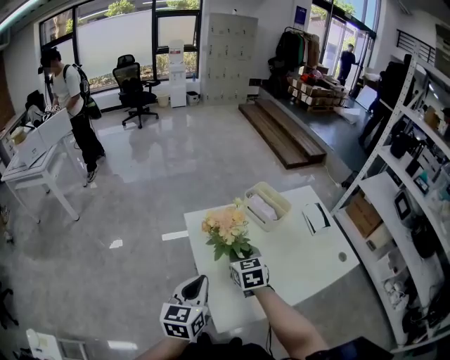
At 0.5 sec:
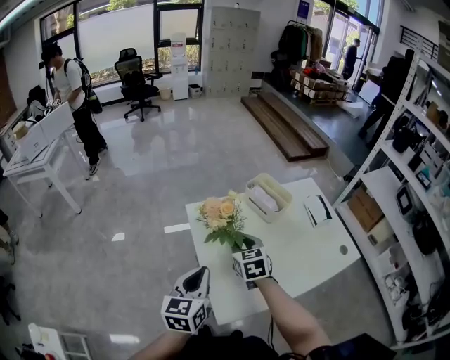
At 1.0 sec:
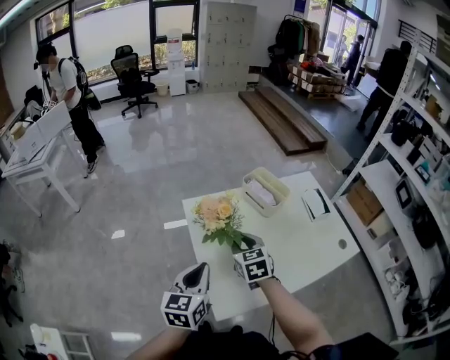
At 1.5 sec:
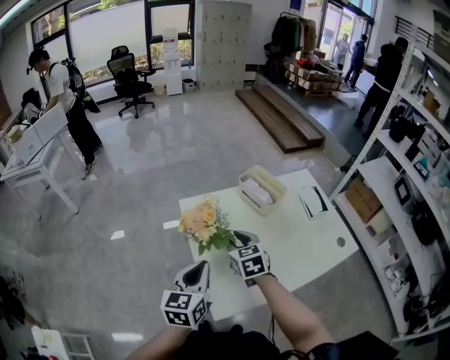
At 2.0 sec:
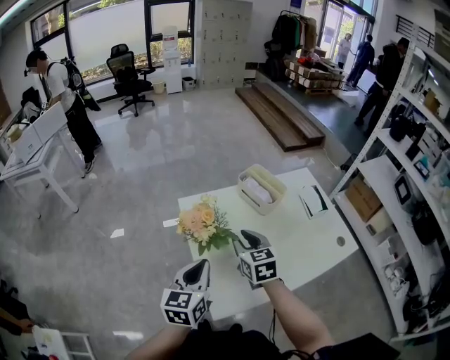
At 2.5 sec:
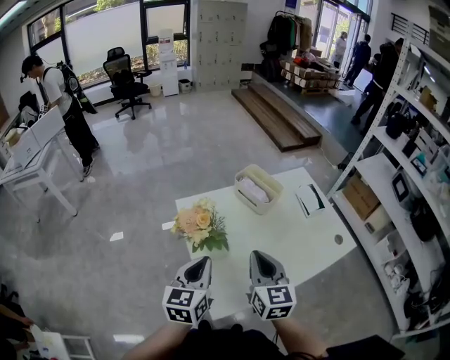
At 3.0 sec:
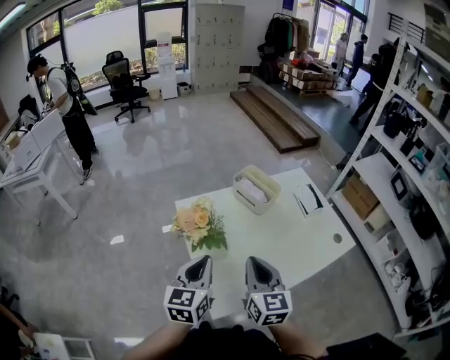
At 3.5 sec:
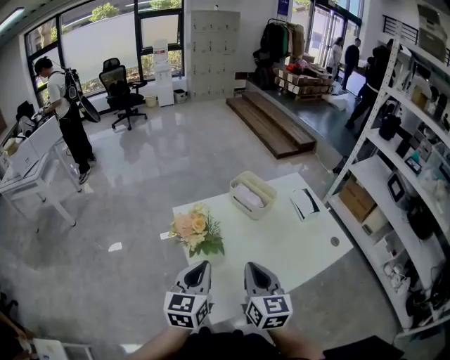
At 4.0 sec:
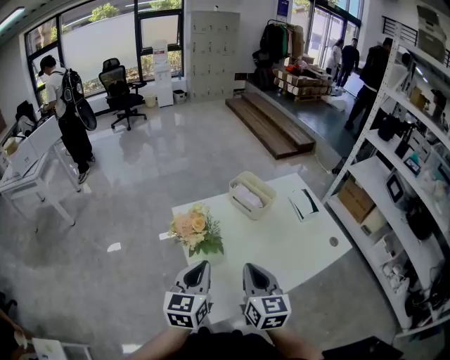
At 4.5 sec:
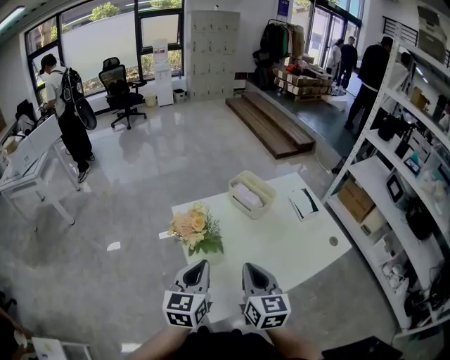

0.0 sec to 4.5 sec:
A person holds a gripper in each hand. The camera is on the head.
0.0 sec to 2.0 sec: The right gripper changes place by some 5 cm.
2.0 sec to 4.5 sec: The right gripper is displaced backward by about 10 cm, and closes.

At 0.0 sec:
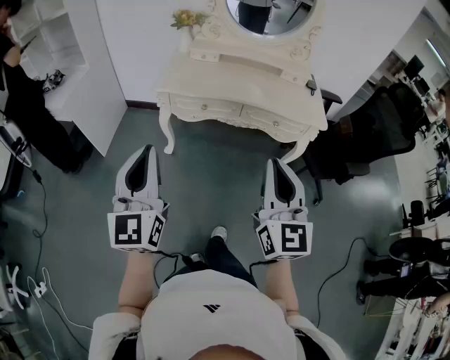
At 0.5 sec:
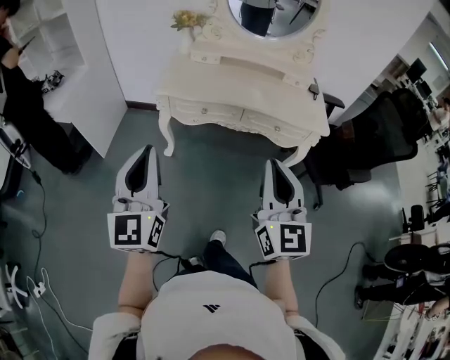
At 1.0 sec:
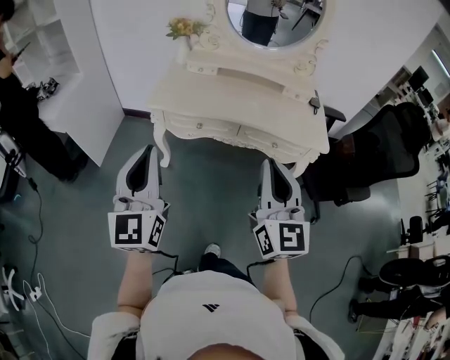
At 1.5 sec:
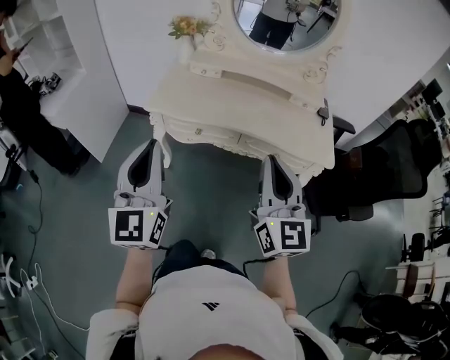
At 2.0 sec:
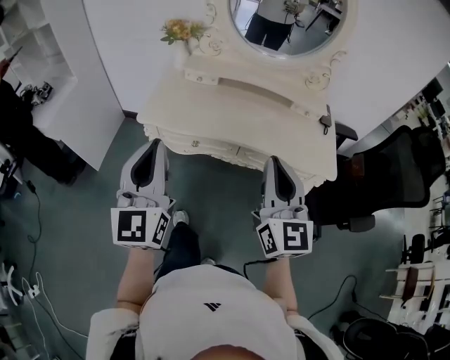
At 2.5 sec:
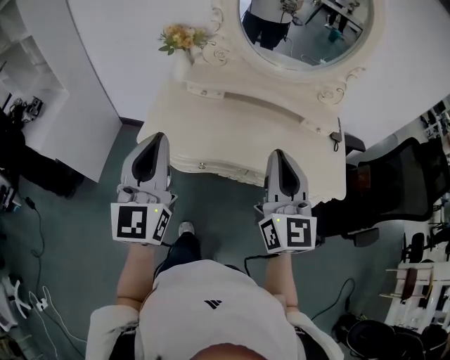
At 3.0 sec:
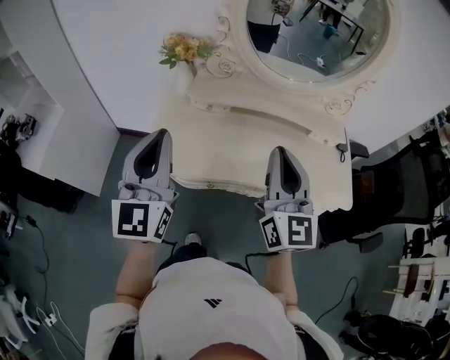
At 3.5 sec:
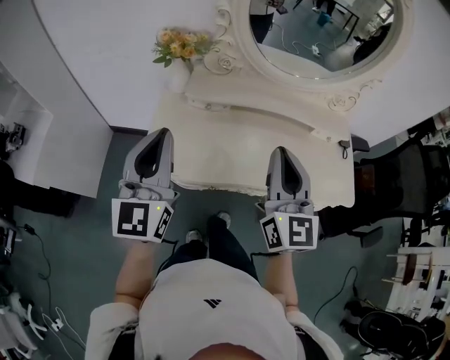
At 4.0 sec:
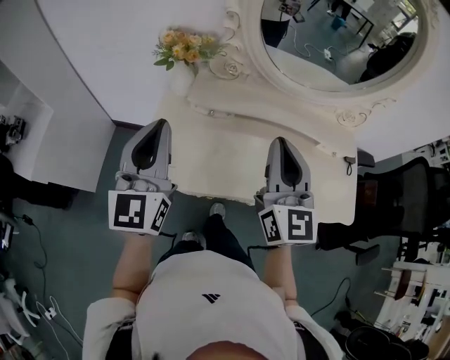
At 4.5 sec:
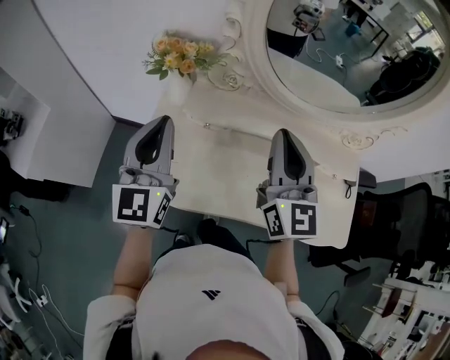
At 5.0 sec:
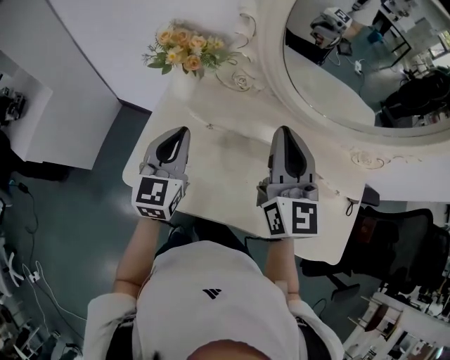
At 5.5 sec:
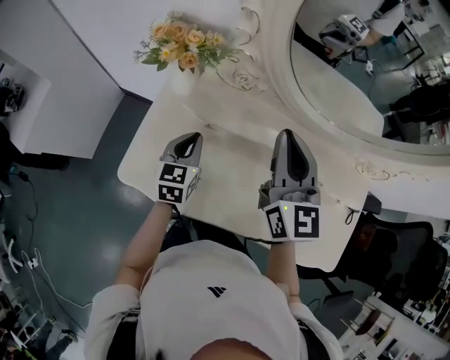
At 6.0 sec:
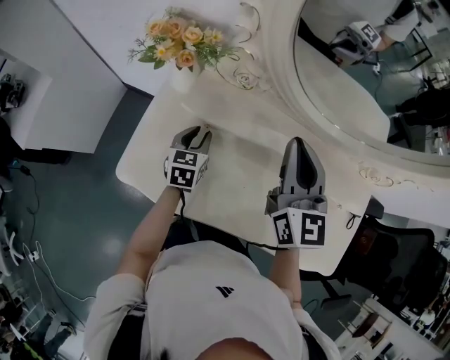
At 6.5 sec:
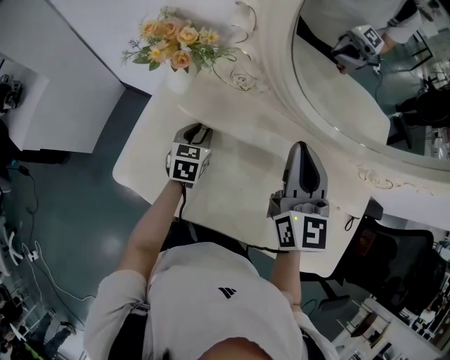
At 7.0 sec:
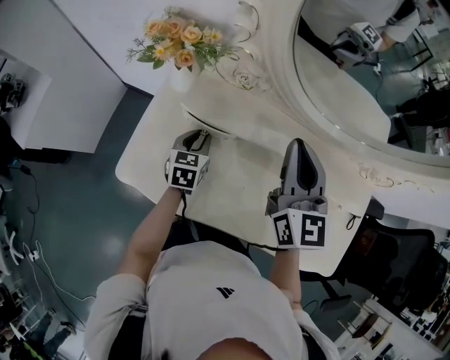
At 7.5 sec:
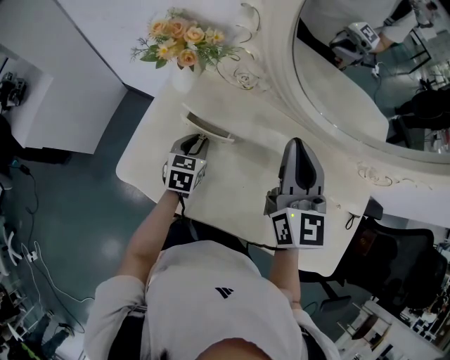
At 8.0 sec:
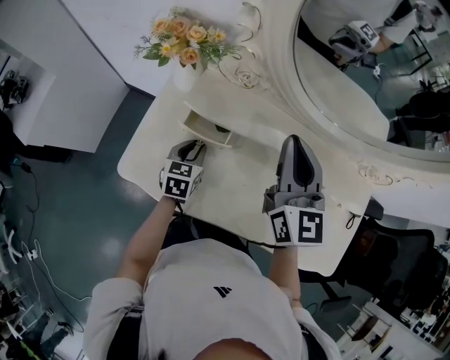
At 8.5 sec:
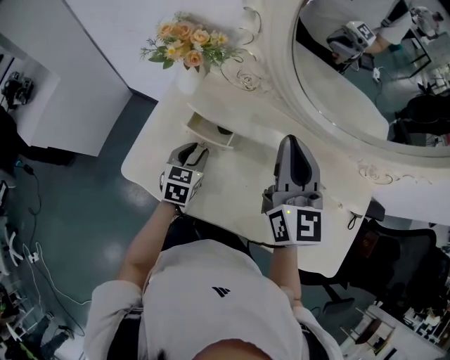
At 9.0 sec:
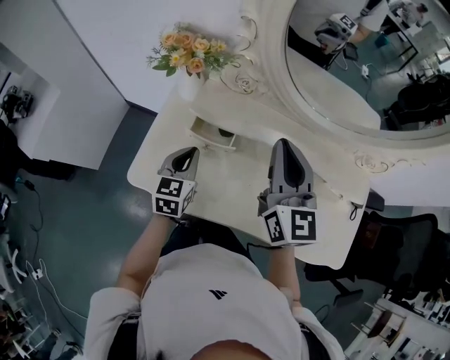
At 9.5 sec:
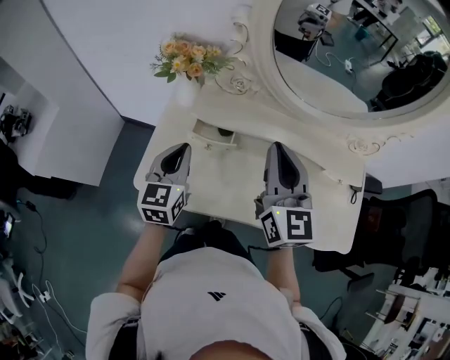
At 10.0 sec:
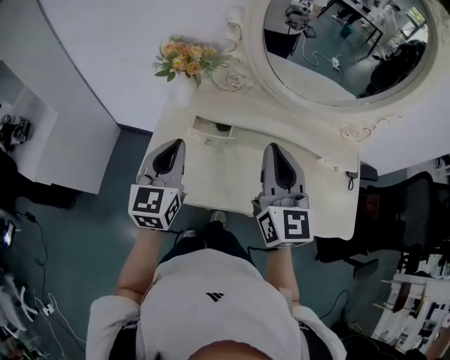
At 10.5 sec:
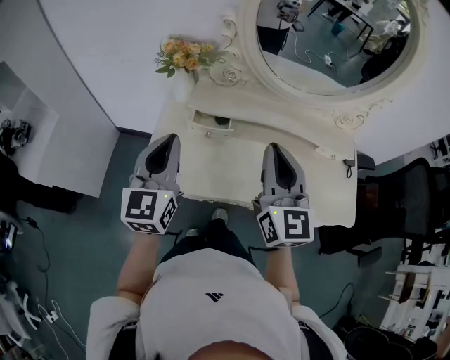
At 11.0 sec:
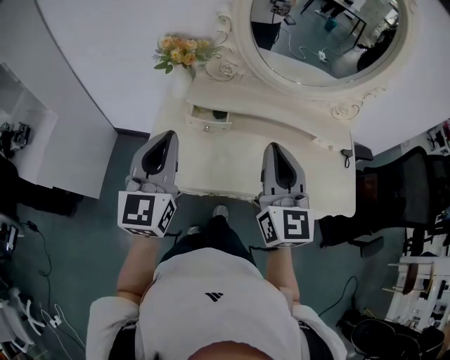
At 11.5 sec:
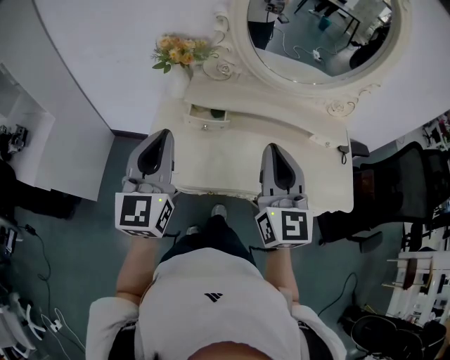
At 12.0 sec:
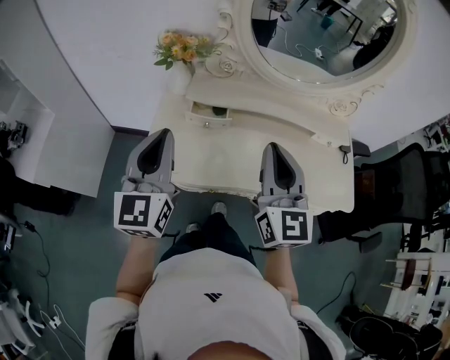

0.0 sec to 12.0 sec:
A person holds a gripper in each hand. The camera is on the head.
0.0 sec to 2.0 sec: Both grippers move forward, approximately 25 cm.
2.0 sec to 4.0 sec: Both grippers move forward, roughly 35 cm.
4.0 sec to 6.0 sec: The right gripper travels forward by approximately 20 cm. The left gripper travels downward and forward by some 35 cm, points its fingers about 40 degrees further downward, and opens its fingers.
6.0 sec to 8.0 sec: The left gripper changes place by roughly 5 cm.
8.0 sec to 10.0 sec: The right gripper moves backward and to the left, roughly 15 cm. Meanwhile the left gripper heads upward and backward, covering roughly 25 cm, tilts its fingers roughly 30 degrees upward, and closes up.
10.0 sec to 12.0 sec: The right gripper heads backward, covering roughly 10 cm, while the left gripper shifts some 10 cm backward and upward.

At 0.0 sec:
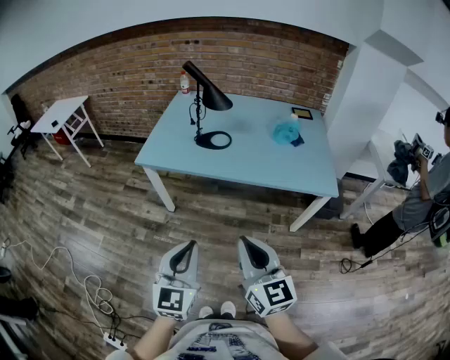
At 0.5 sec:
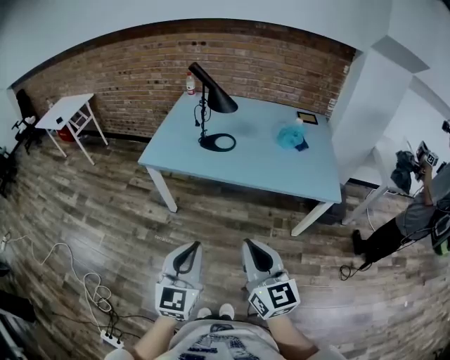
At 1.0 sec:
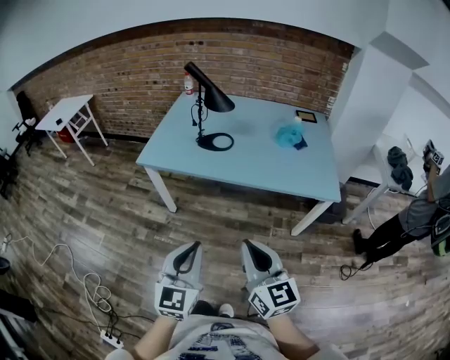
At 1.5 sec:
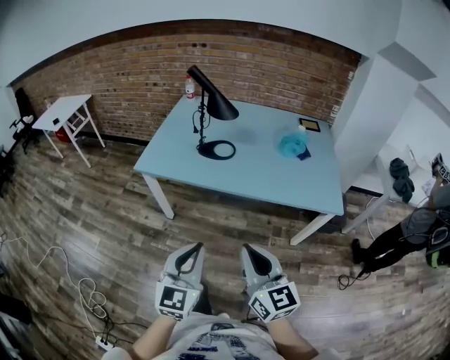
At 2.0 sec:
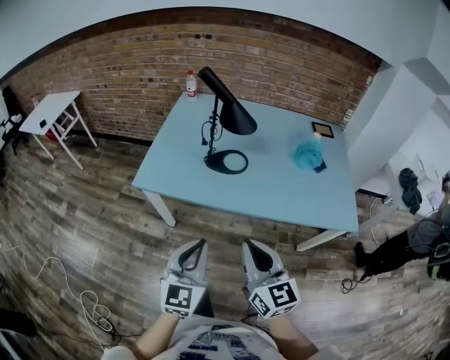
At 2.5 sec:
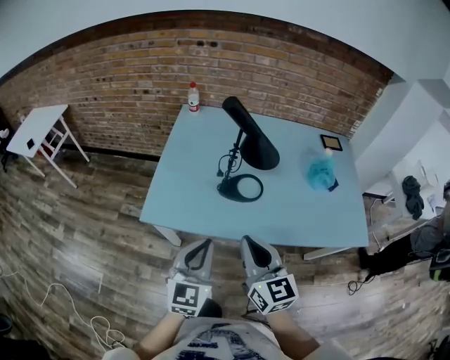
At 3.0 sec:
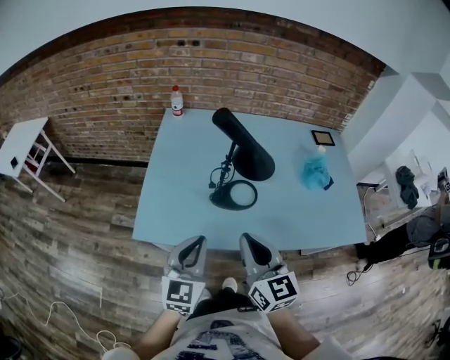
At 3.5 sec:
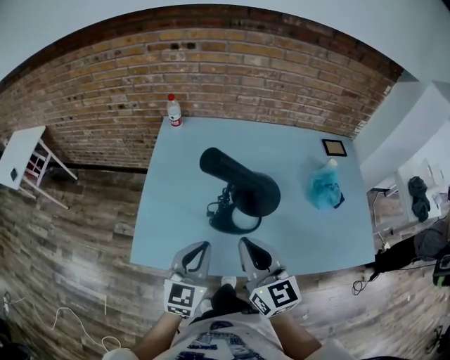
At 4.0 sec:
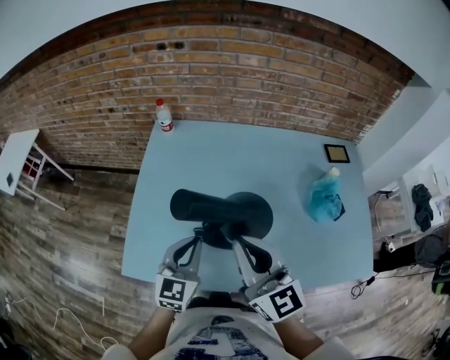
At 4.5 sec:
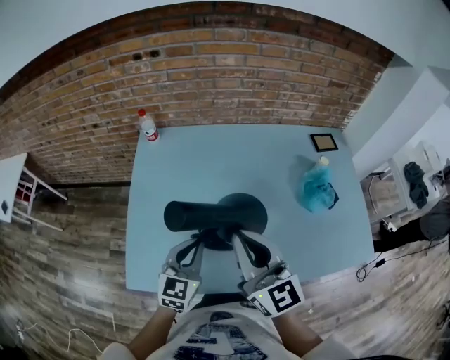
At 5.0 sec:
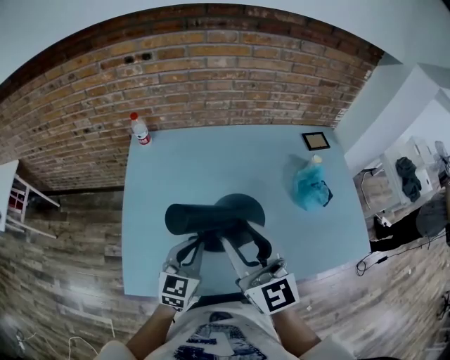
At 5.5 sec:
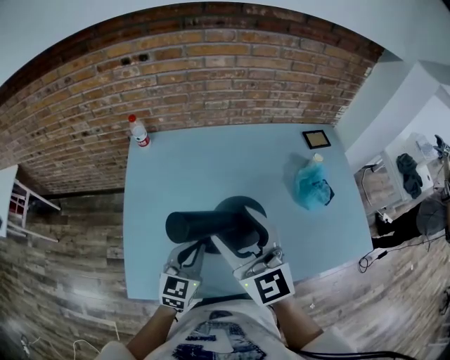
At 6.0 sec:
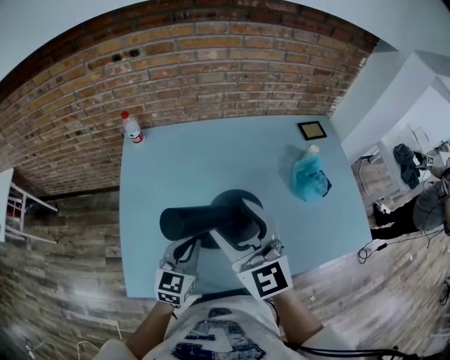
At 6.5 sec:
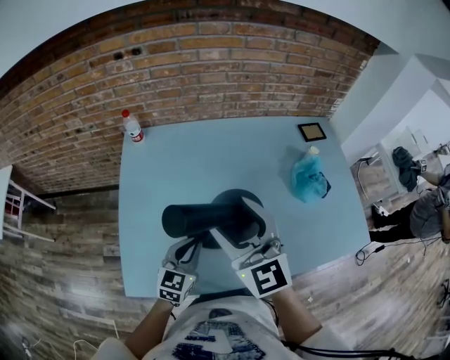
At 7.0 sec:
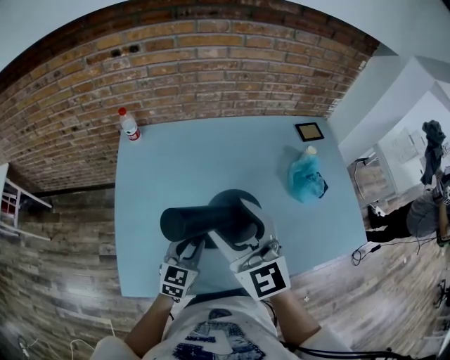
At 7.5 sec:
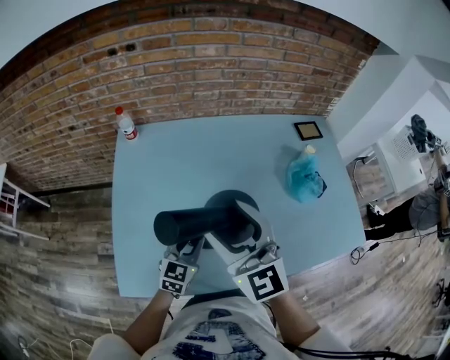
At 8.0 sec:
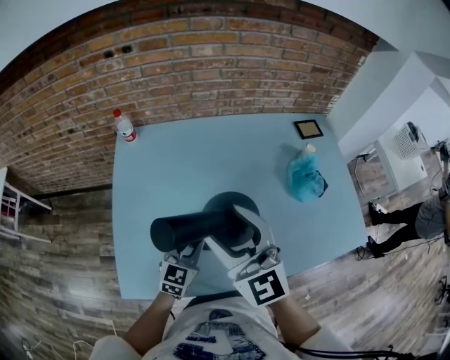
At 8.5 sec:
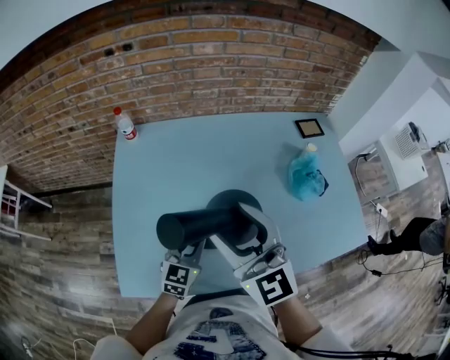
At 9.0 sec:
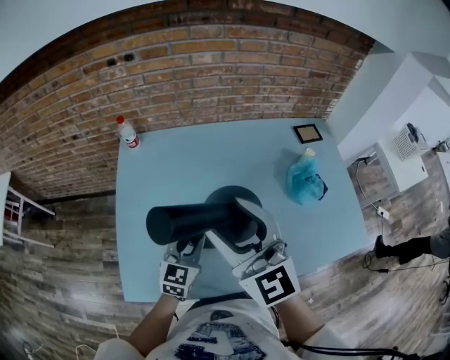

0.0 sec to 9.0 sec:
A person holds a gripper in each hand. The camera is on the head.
0.0 sec to 2.0 sec: Both grippers travel together forward, some 25 cm.
2.0 sec to 4.5 sec: Both grippers are carried forward, roughly 40 cm.
4.5 sec to 7.0 sec: The left gripper moves downward, about 10 cm. Meanwhile the right gripper ends up roughly 5 cm from where it was, and opens up.
7.0 sec to 9.0 sec: The right gripper shifts by some 5 cm. The left gripper changes place by approximately 5 cm.

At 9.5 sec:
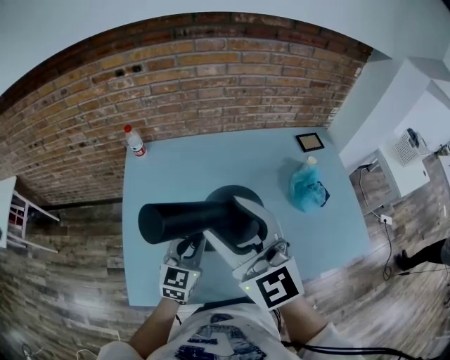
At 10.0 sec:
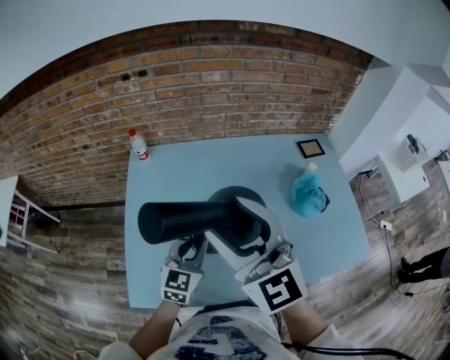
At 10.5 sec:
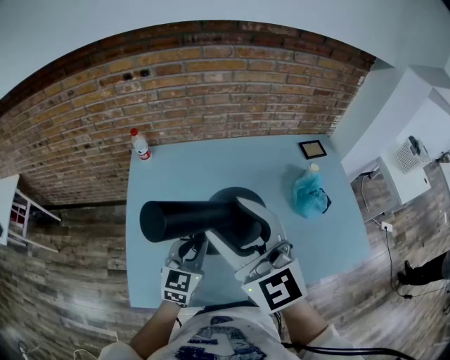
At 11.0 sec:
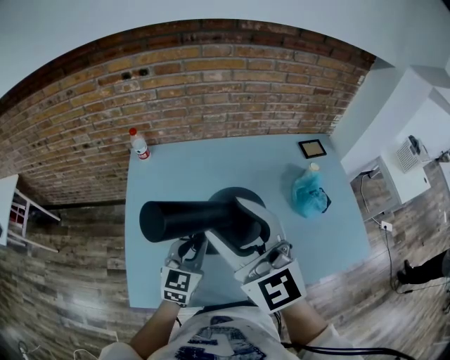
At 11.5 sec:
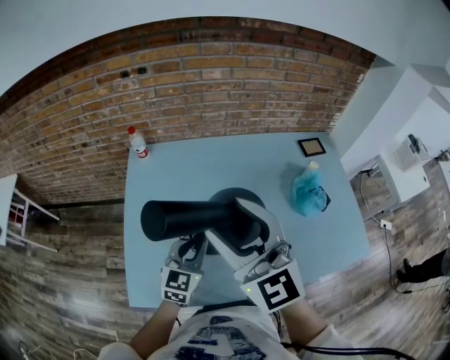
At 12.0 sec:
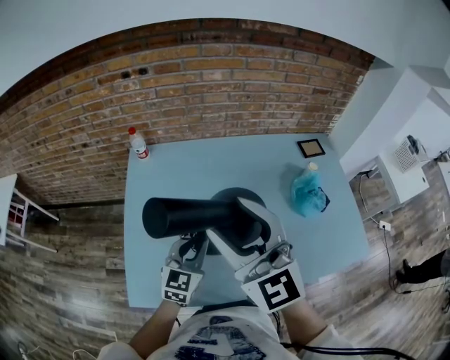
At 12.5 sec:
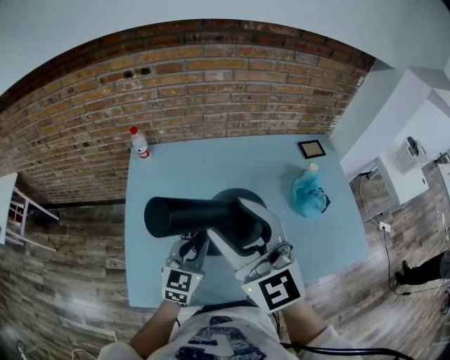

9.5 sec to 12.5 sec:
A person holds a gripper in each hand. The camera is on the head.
9.5 sec to 11.0 sec: The grippers stay close to where they were, moving slightly.
11.0 sec to 12.5 sec: Both grippers stay about where they are.
